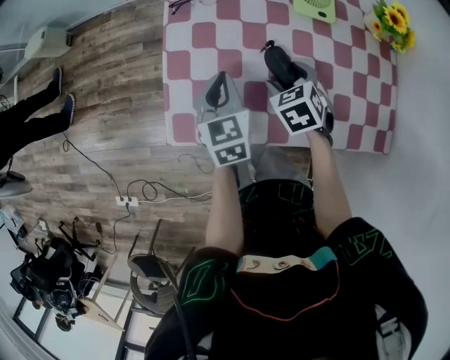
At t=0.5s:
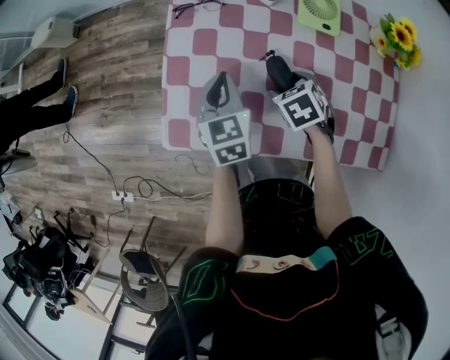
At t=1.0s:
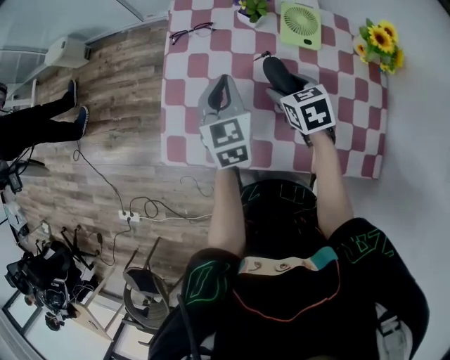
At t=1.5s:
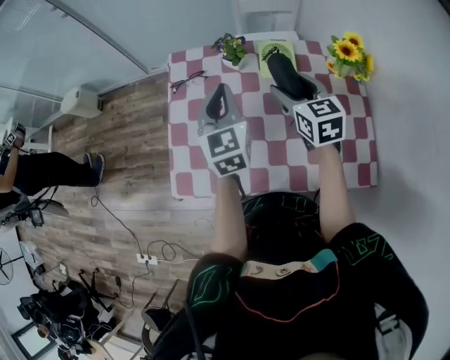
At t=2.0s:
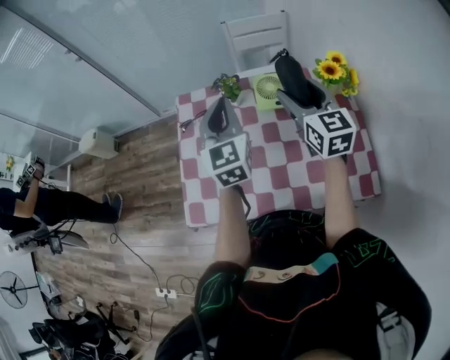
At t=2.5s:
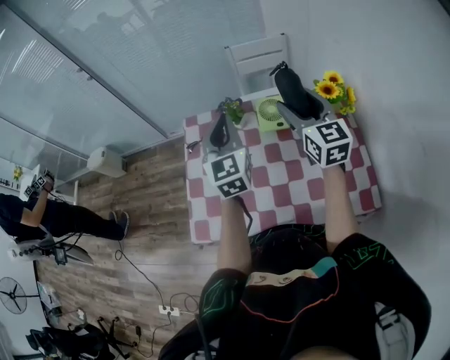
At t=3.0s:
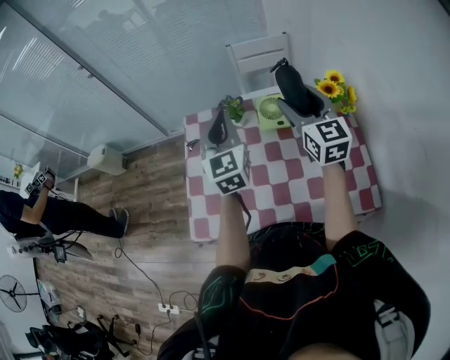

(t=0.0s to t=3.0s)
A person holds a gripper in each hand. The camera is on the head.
t=0.0s - t=1.5s: Both grippers travel together upward, to the right and forward, roughly 20 cm. The right gripper points its fingers roughly 30 degrees further upward.
t=1.5s - t=3.0s: The left gripper moves upward, some 10 cm. Meanwhile the right gripper shifts some 15 cm upward and to the right, and changes its angle by approximately 30 degrees.

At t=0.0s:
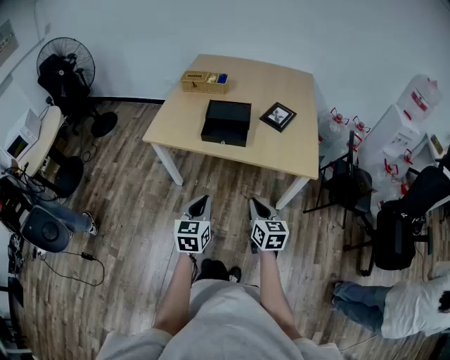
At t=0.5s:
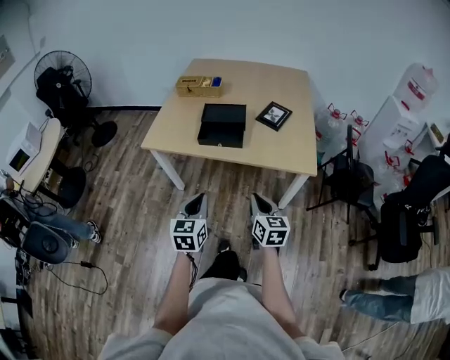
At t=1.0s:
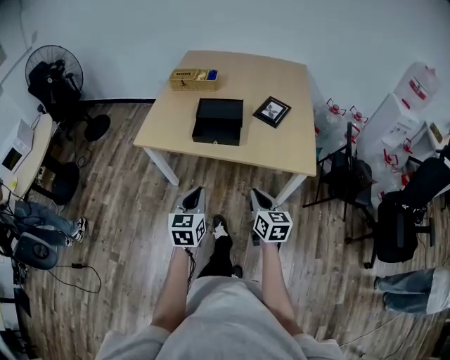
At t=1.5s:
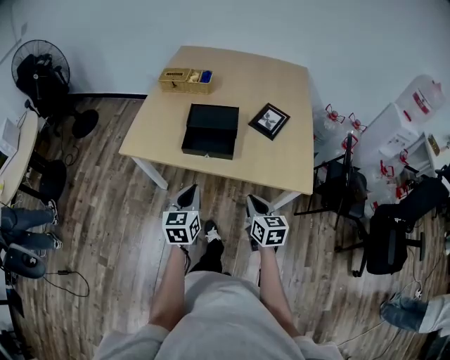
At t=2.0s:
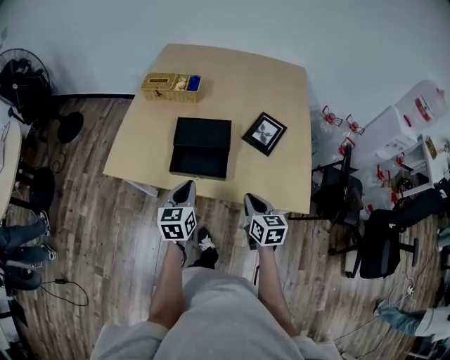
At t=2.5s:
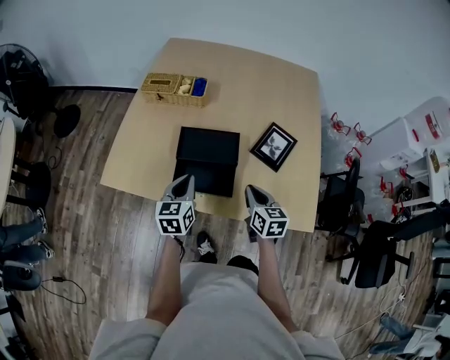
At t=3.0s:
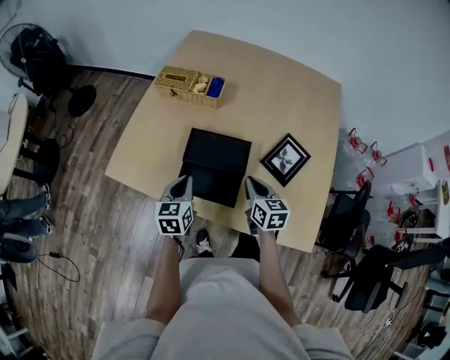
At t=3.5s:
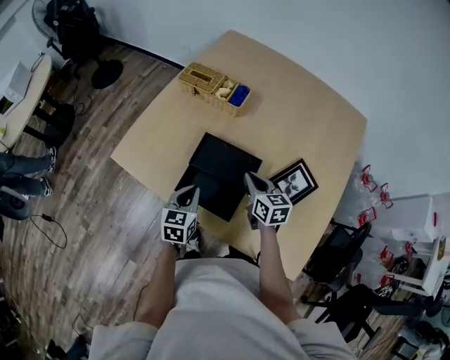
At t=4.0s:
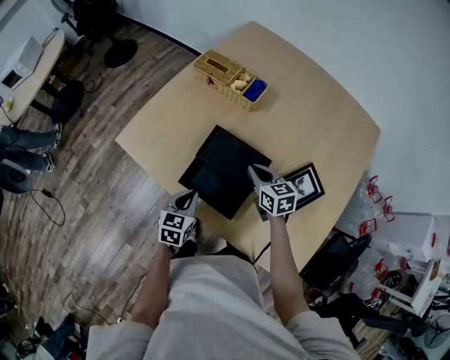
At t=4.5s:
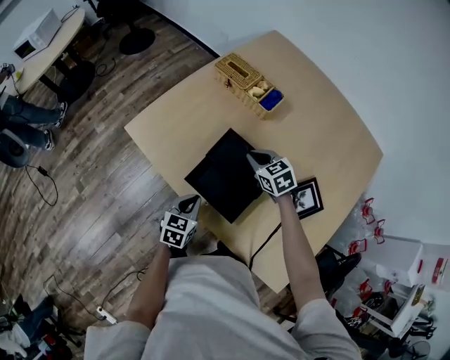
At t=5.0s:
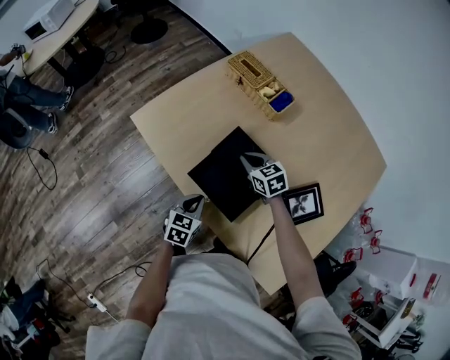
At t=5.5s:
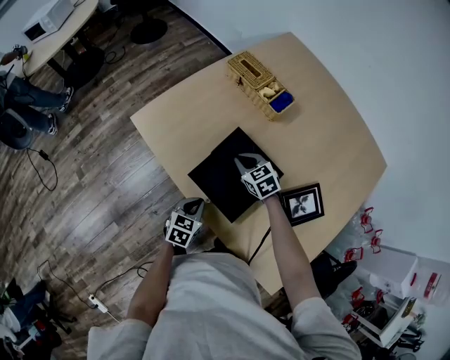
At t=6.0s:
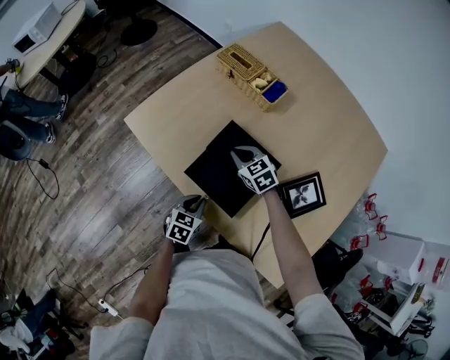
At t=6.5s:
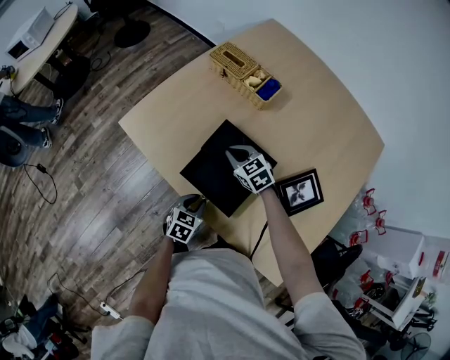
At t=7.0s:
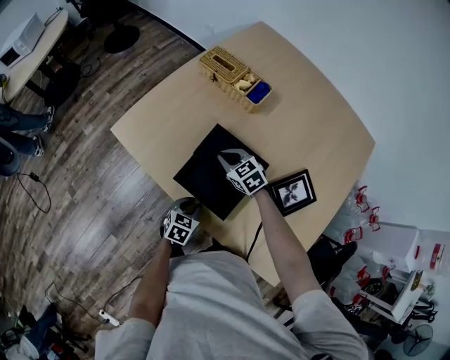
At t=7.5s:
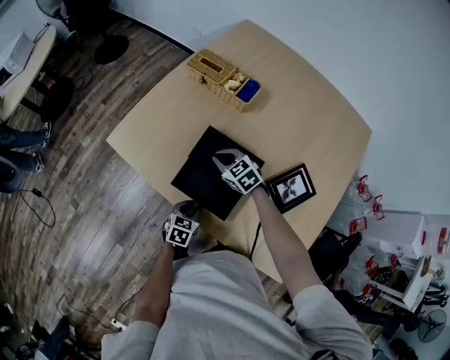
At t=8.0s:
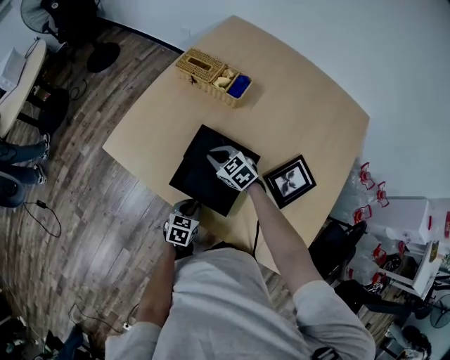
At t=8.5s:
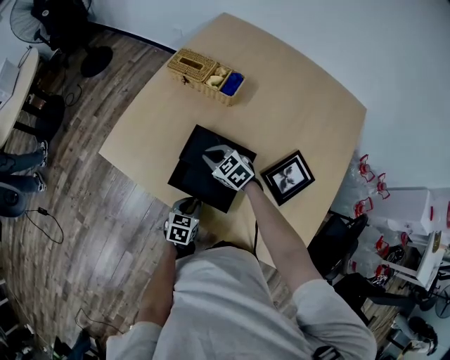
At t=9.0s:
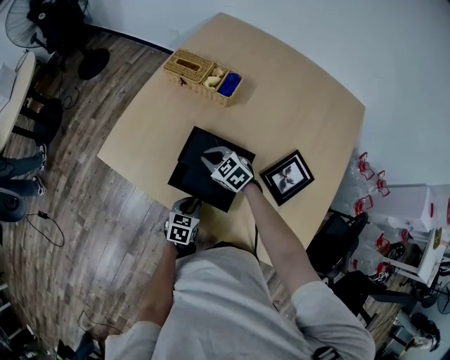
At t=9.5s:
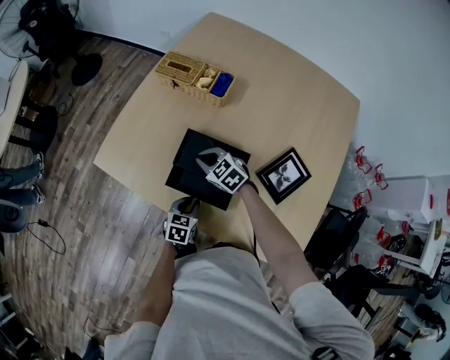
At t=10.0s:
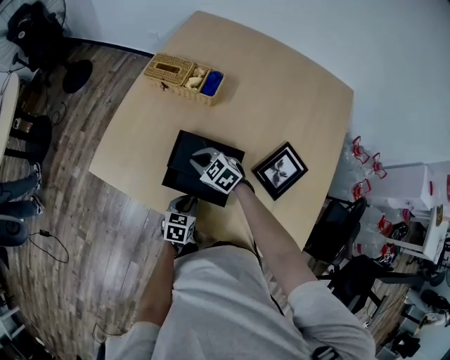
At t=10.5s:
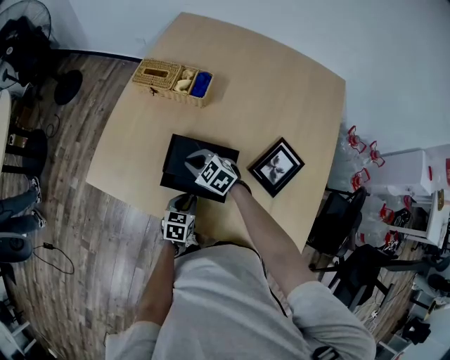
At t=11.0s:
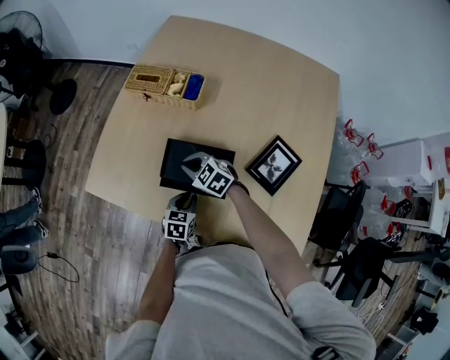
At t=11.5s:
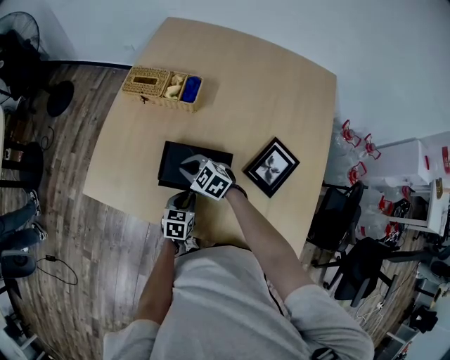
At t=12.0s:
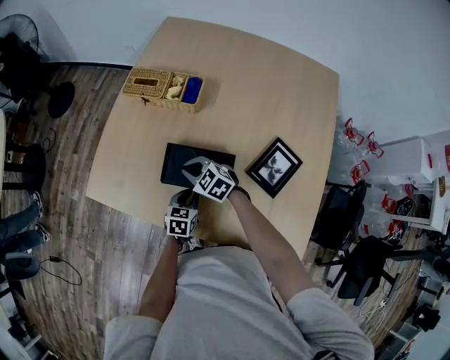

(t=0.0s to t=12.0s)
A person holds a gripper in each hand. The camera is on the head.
t=0.0s - t=2.0s: Both grippers travel together forward, roughly 25 cm.
t=2.0s - t=4.0s: The right gripper ends up some 30 cm from where it was, and turns by about 40 degrees. Meanwhile the left gripper heads downward, covering about 10 cm.
t=4.0s - t=6.0s: The right gripper goes some 10 cm to the left and forward, and swivels some 30 degrees; the left gripper travels downward by some 5 cm.
t=6.0s - t=8.0s: There are only small adjustments of the grippers.
t=8.0s - t=10.0s: The grippers make only small movements.
t=10.0s - t=12.0s: The left gripper heads forward, covering roughly 5 cm.

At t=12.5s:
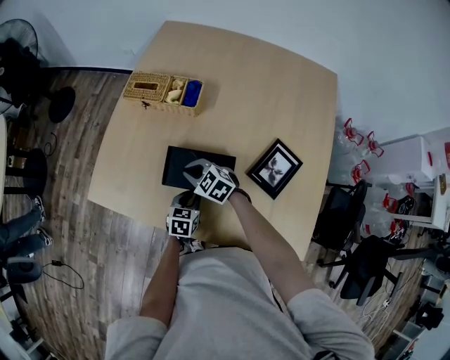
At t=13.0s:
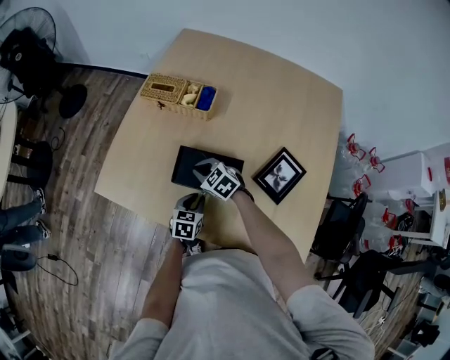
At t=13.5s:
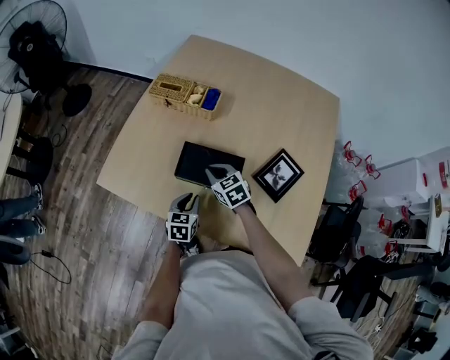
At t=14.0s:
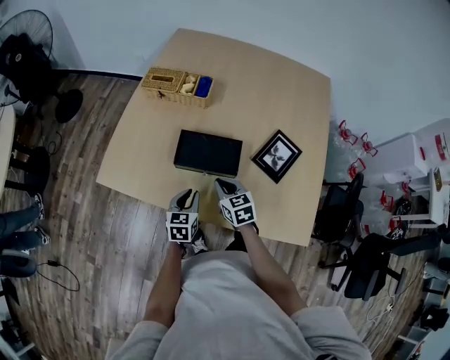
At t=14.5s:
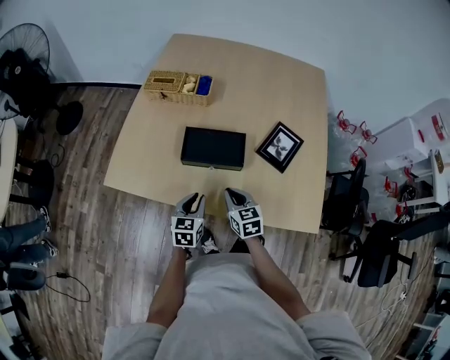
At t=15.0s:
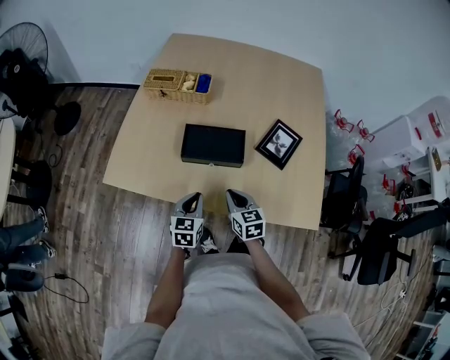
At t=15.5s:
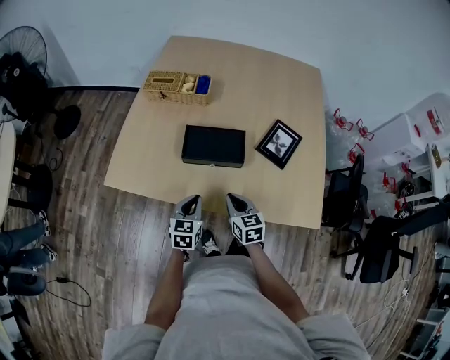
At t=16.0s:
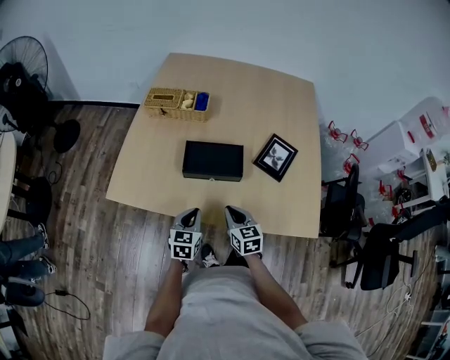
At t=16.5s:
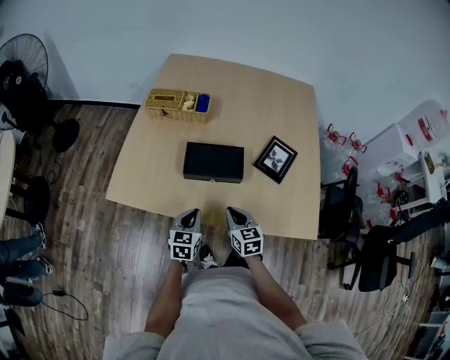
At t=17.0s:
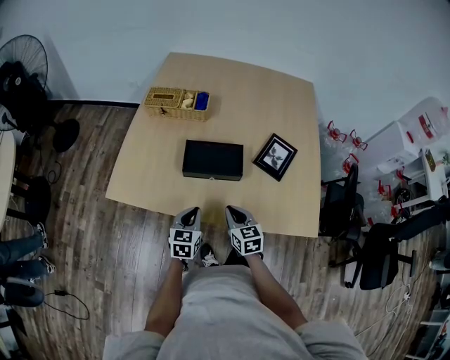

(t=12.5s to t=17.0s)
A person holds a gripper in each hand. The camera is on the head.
t=12.5s - t=14.5s: The left gripper heads backward, upward and to the left, covering about 15 cm, while the right gripper heads backward, covering roughly 20 cm, and turns by some 50 degrees.
t=14.5s - t=17.0s: There are only small adjustments of the grippers.

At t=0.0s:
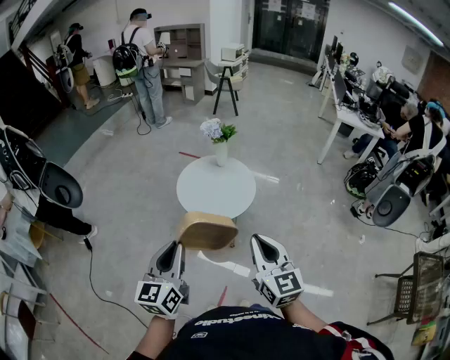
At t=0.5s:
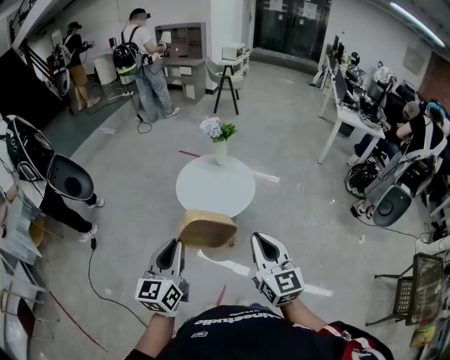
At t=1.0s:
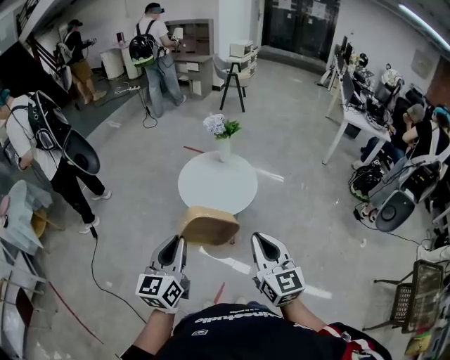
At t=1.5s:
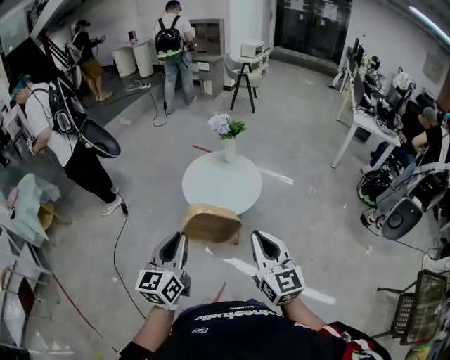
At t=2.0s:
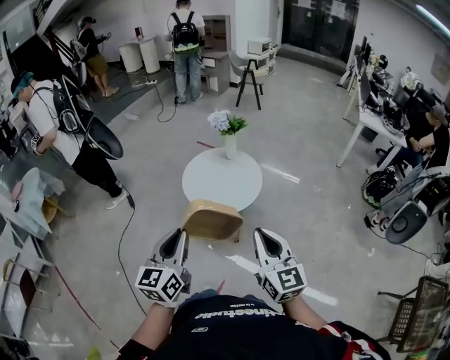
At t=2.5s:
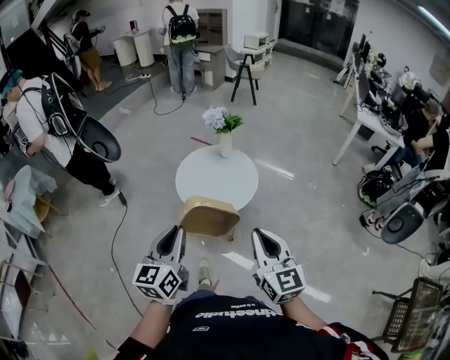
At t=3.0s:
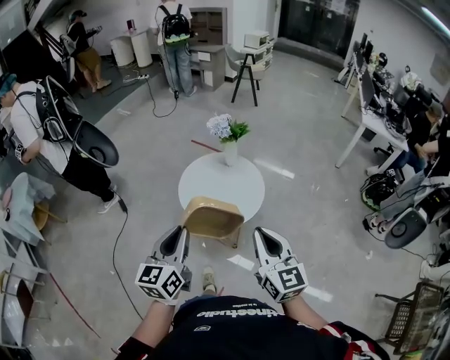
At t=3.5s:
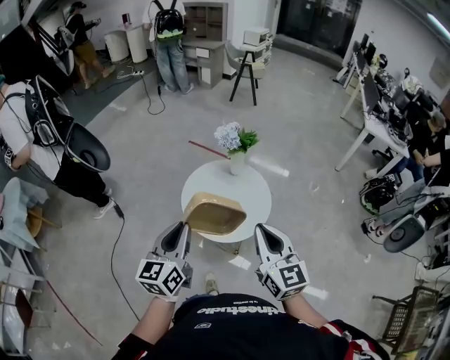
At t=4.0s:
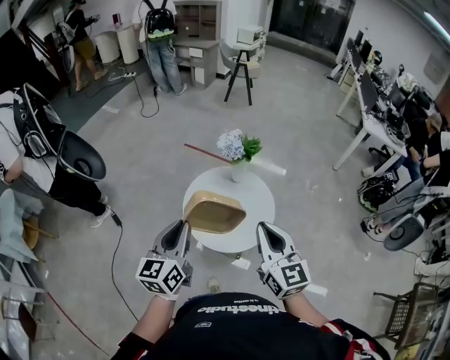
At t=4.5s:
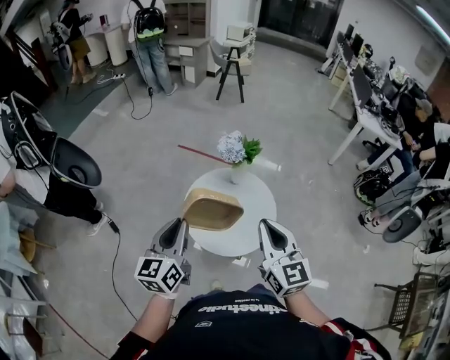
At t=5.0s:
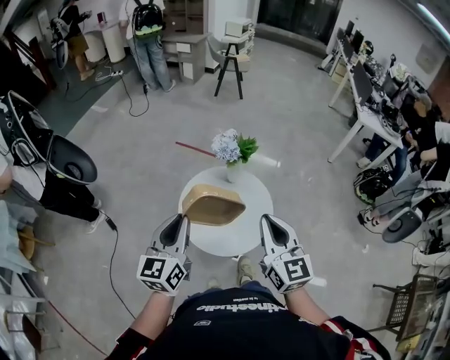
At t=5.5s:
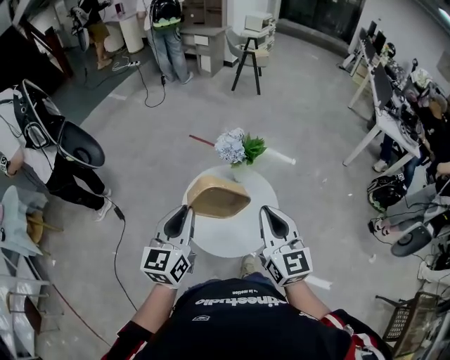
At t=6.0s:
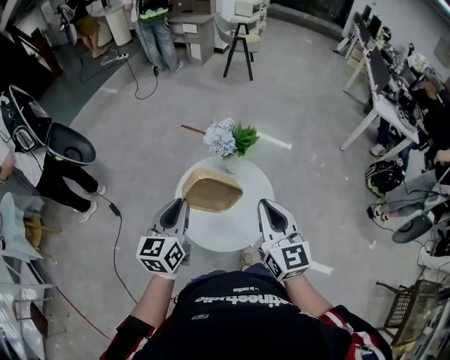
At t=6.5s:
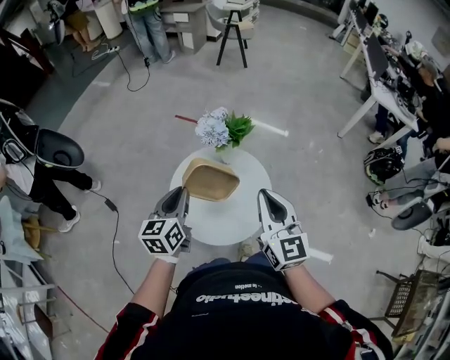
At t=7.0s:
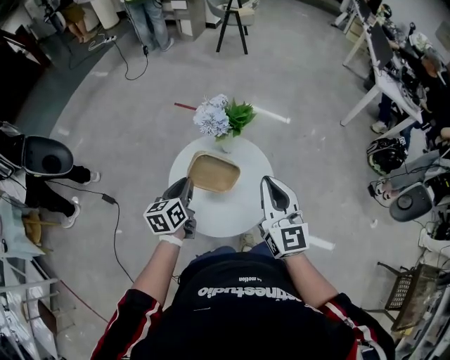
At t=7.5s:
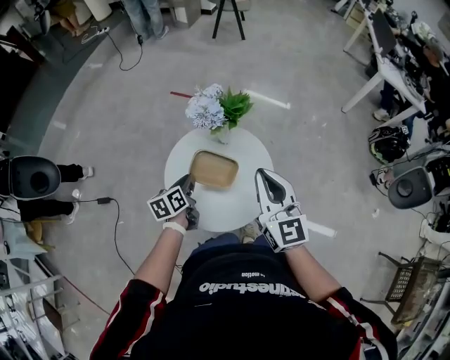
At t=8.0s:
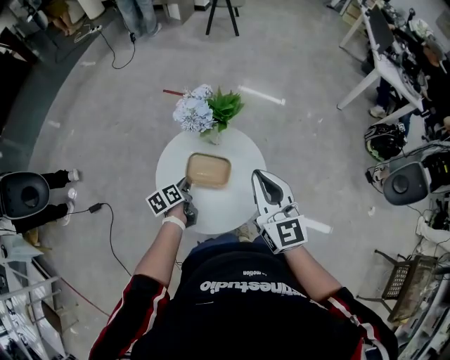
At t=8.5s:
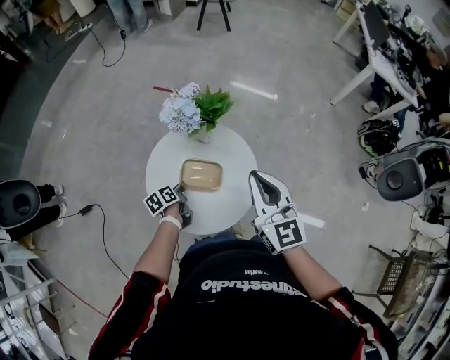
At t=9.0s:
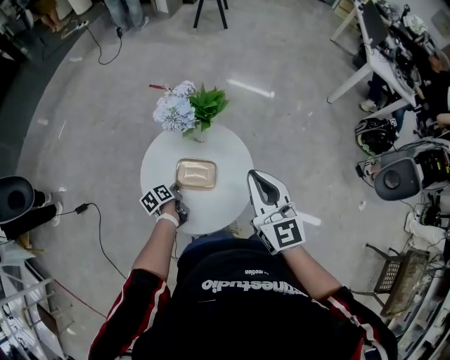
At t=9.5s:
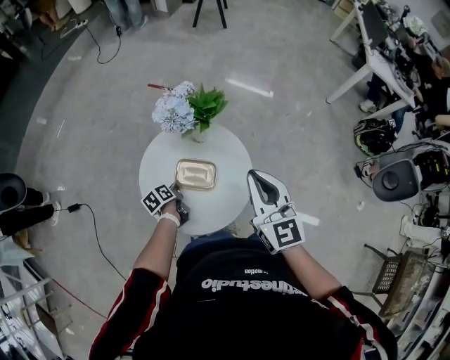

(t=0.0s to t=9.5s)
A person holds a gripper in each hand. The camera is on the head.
t=0.0s - t=2.0s: Both grippers travel together to the right, roughly 10 cm.
t=2.0s - t=4.0s: Both grippers travel together forward, some 35 cm.
t=4.0s - t=5.5s: The grippers both shift forward by about 10 cm.
t=5.5s - t=7.5s: The right gripper shifts about 10 cm downward and forward. Meanwhile the left gripper goes approximately 30 cm downward and forward, and rotates some 40 degrees.
t=7.5s - t=9.5s: The left gripper shifts approximately 15 cm downward, and rotates about 30 degrees, while the right gripper changes place by approximately 5 cm.
